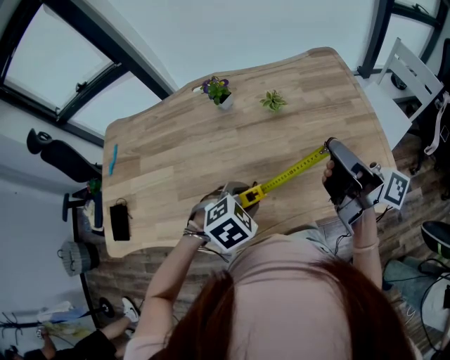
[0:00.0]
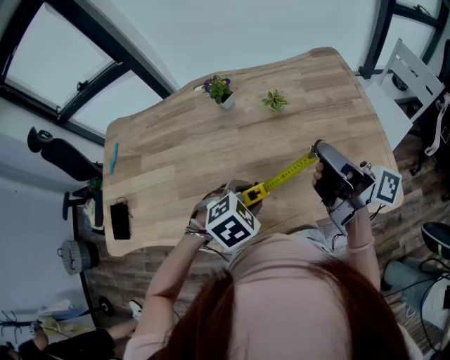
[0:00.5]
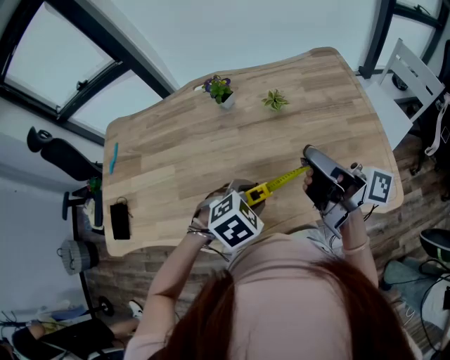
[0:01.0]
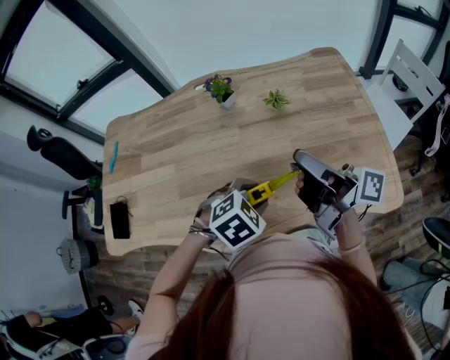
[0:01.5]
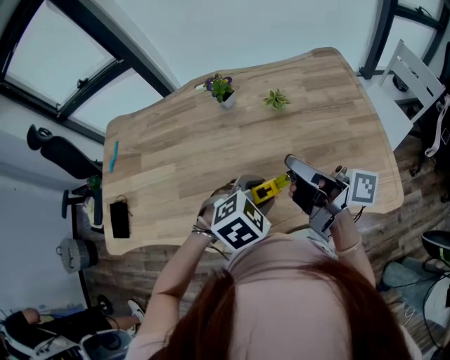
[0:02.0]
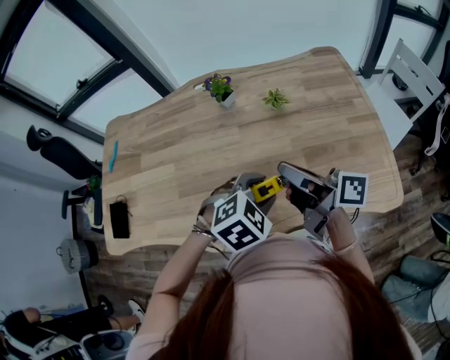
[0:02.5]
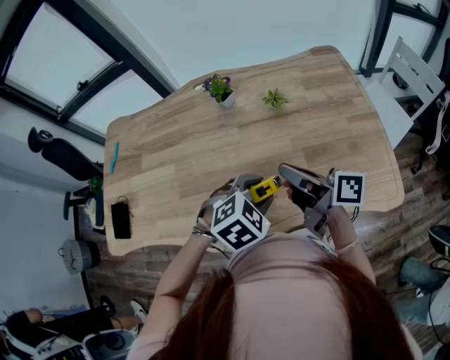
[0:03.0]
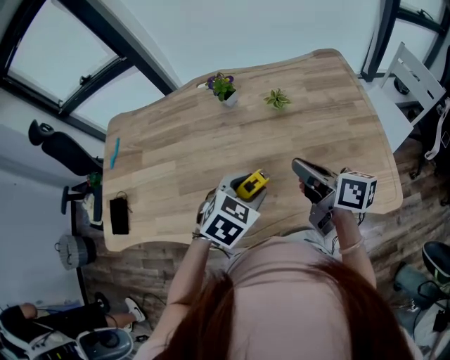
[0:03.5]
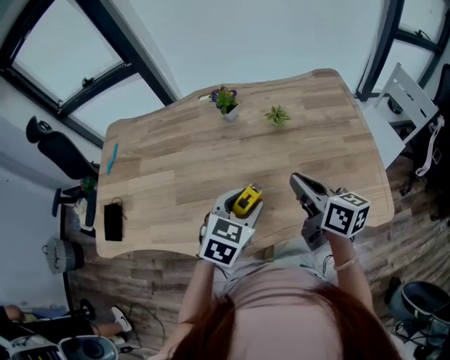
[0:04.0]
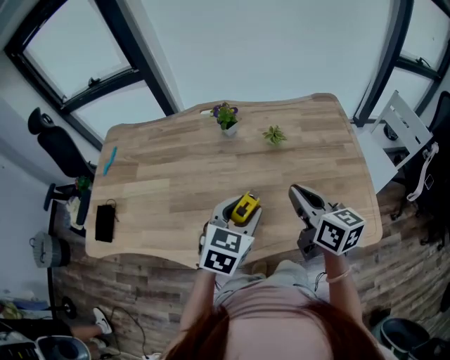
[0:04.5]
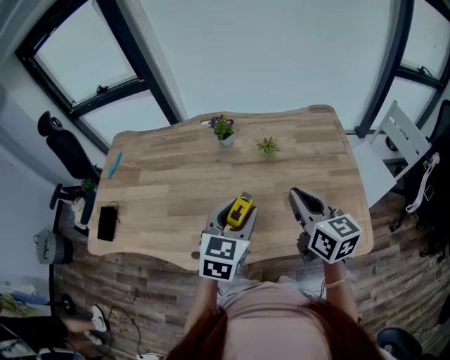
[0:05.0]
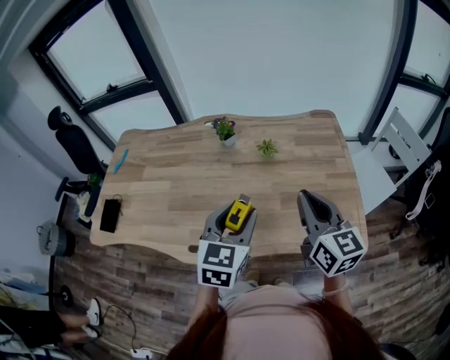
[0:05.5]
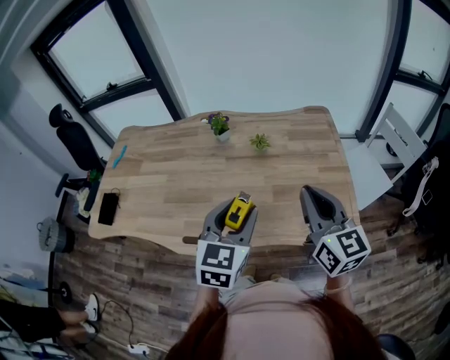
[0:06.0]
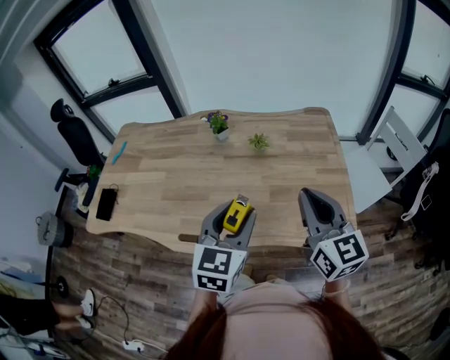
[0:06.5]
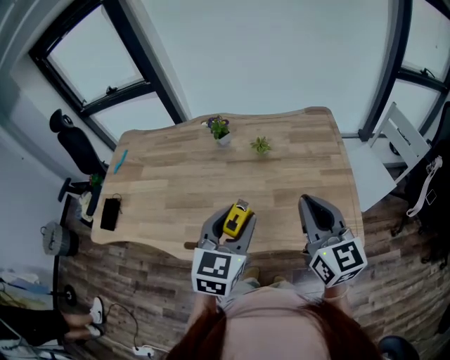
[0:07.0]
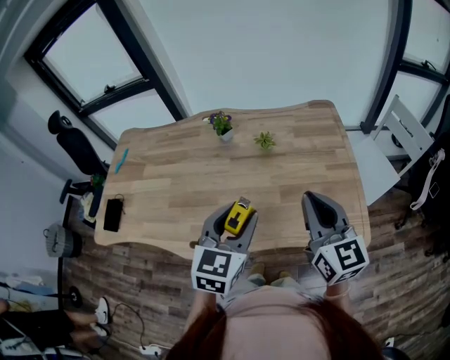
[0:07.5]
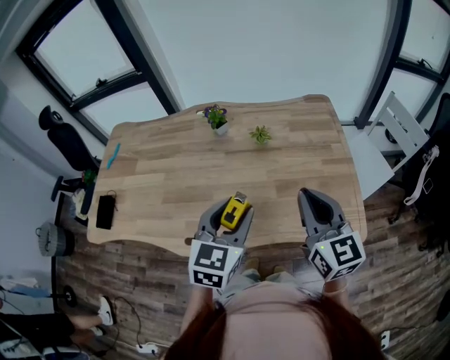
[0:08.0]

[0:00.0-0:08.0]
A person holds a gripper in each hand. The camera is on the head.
0:00.0 to 0:02.0: The right gripper goes about 10 cm to the left.
0:02.0 to 0:04.0: The left gripper changes its angle by roughly 30 degrees; the right gripper heads downward, covering approximately 5 cm, and turns by roughly 40 degrees.
0:04.0 to 0:06.0: The grippers both shift upward, to the right and backward by about 20 cm. The right gripper turns by approximately 30 degrees; the left gripper rotates some 30 degrees.
0:06.0 to 0:08.0: The left gripper shifts by roughly 5 cm.

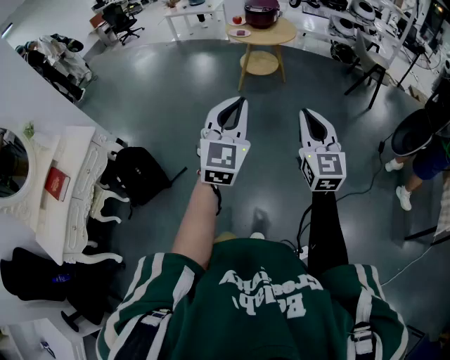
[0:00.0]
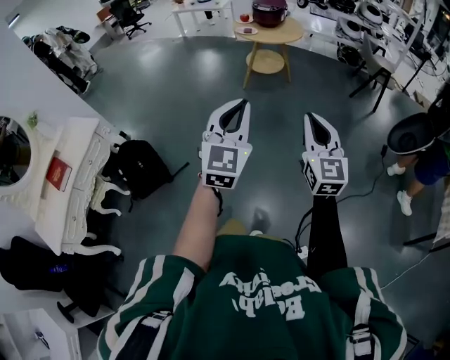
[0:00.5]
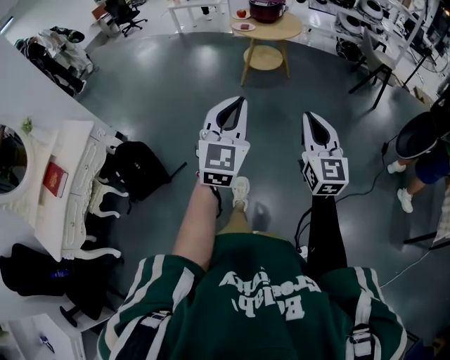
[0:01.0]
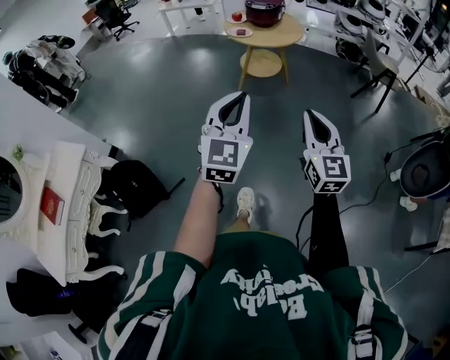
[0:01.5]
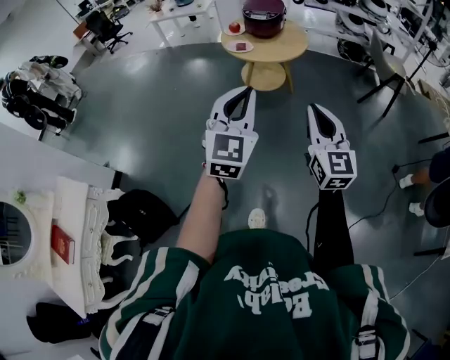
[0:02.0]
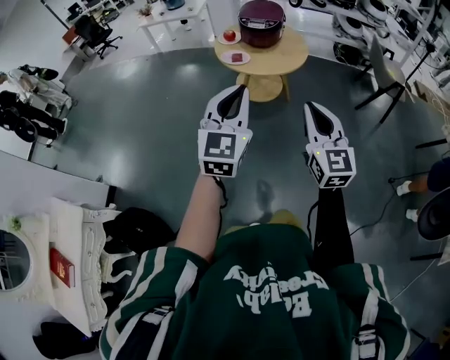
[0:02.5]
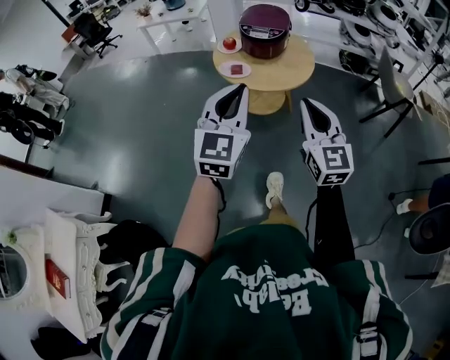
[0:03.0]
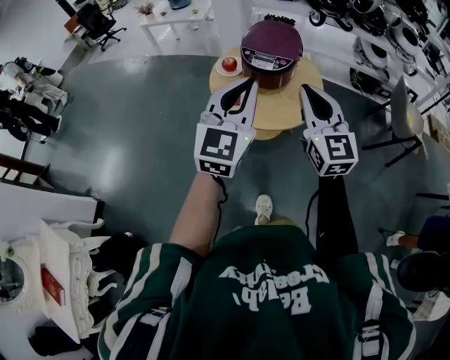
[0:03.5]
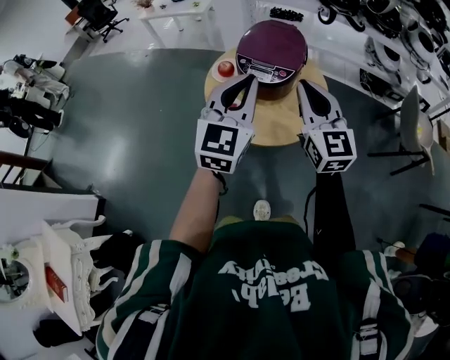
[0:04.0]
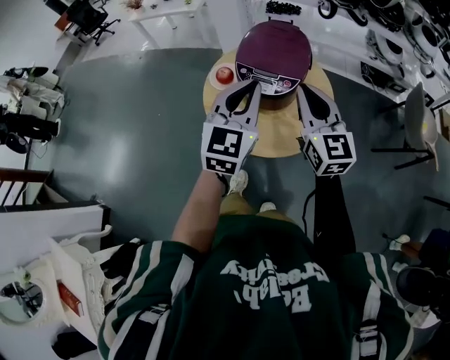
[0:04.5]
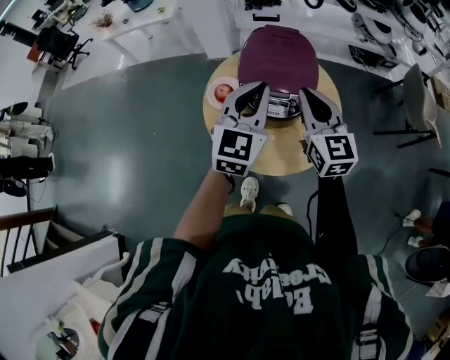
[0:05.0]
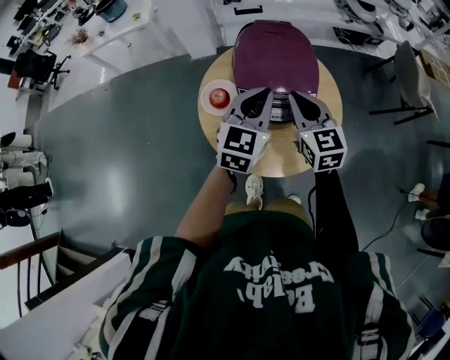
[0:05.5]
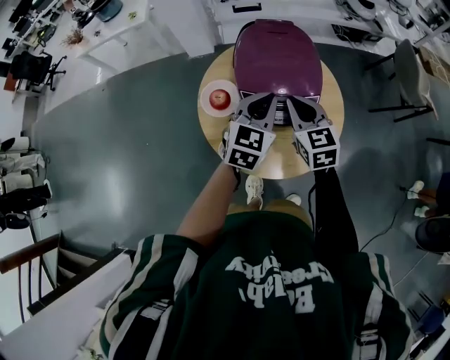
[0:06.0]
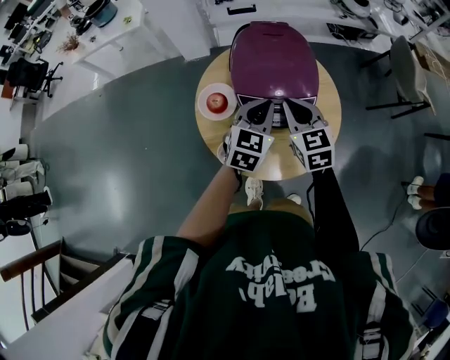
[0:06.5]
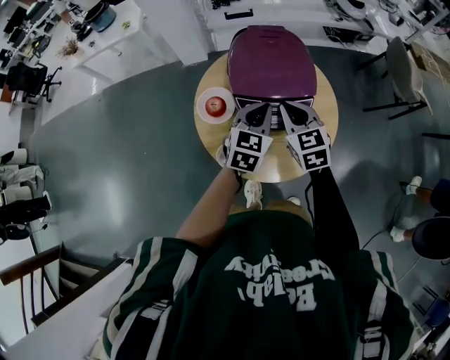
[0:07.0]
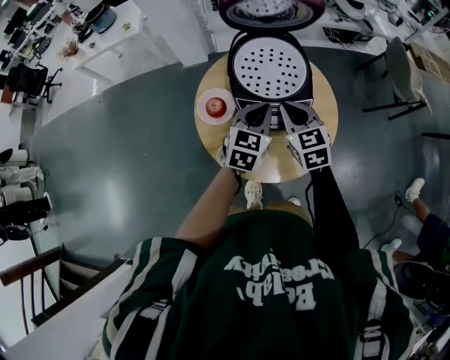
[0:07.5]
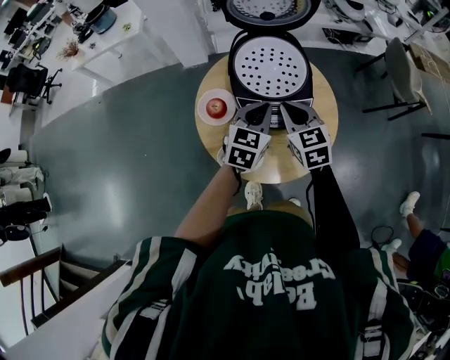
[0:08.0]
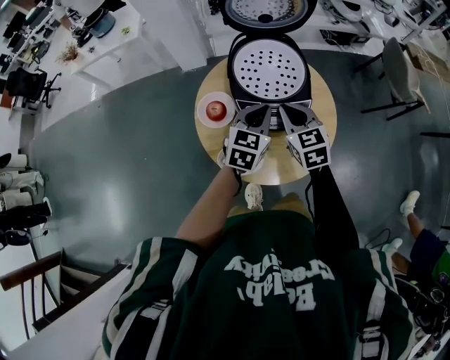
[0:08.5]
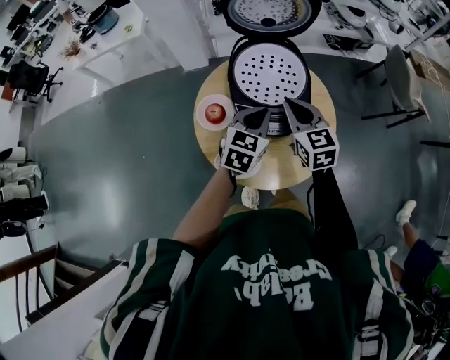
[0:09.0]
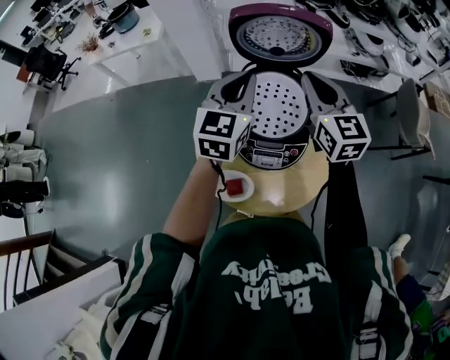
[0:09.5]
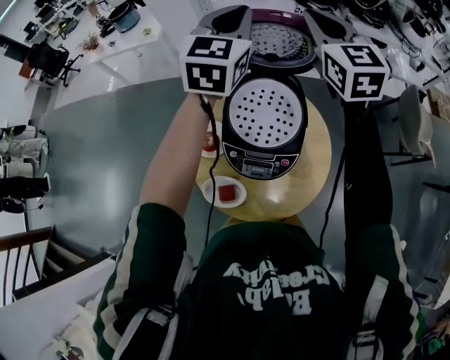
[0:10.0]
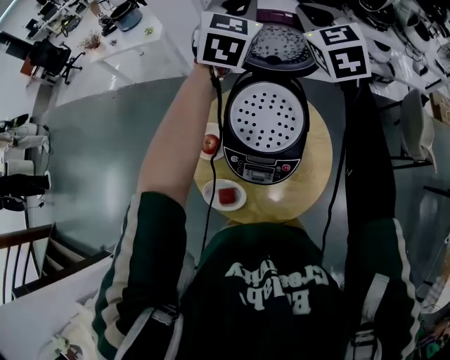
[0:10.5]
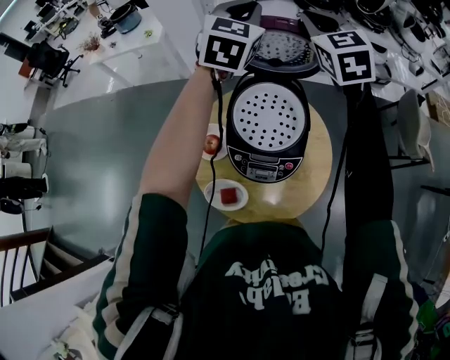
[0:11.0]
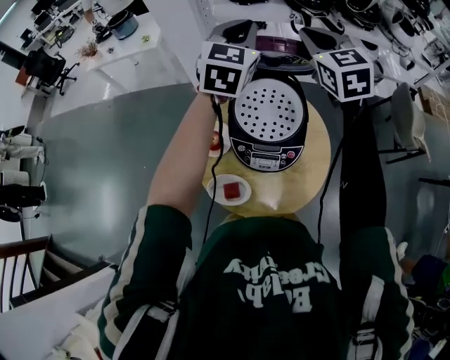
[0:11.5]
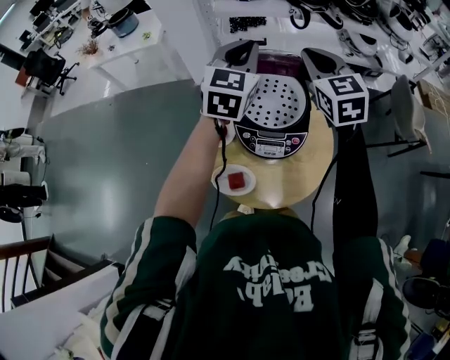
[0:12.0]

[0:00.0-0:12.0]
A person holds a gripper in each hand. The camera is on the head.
0:00.0 to 0:02.0: The two grippers go some 40 cm forward.
0:02.0 to 0:04.0: Both grippers are carried forward, some 70 cm.
0:04.0 to 0:06.0: The left gripper travels forward and downward by about 30 cm, and changes its angle by about 30 degrees, while the right gripper goes some 30 cm forward, downward and to the left, and swivels approximately 30 degrees.
0:06.0 to 0:08.0: There are only small adjustments of the grippers.
0:08.0 to 0:10.0: The two grippers go roughly 40 cm upward and forward. The left gripper swivels roughly 30 degrees; the right gripper swivels some 30 degrees.
0:10.0 to 0:12.0: Both grippers travel together backward and downward, some 10 cm.

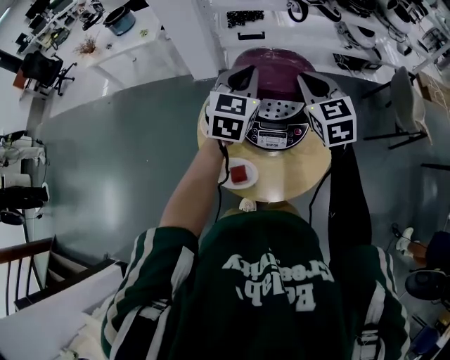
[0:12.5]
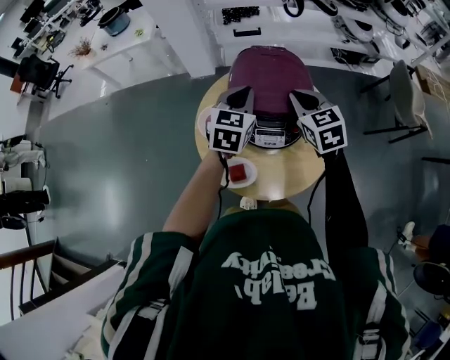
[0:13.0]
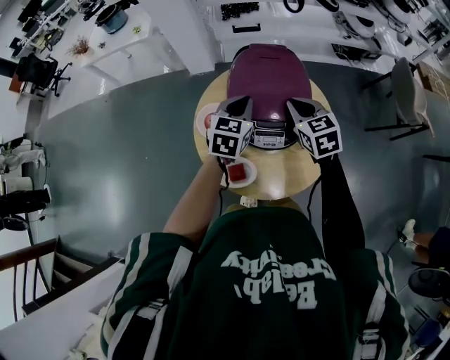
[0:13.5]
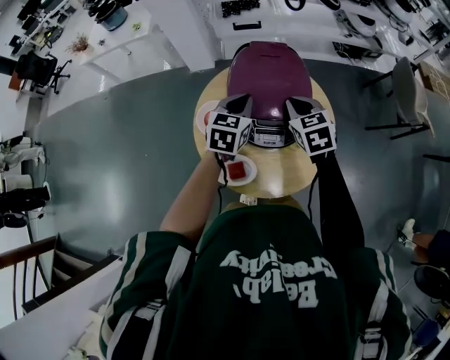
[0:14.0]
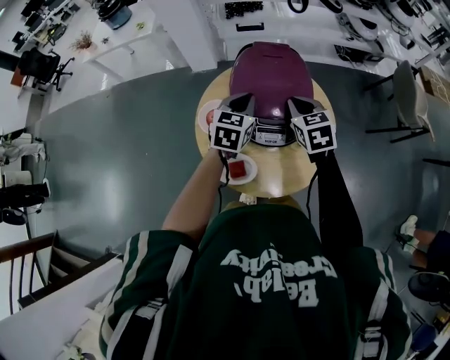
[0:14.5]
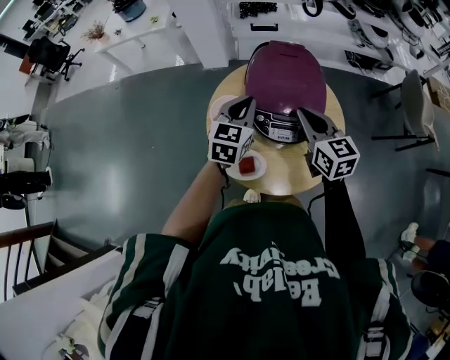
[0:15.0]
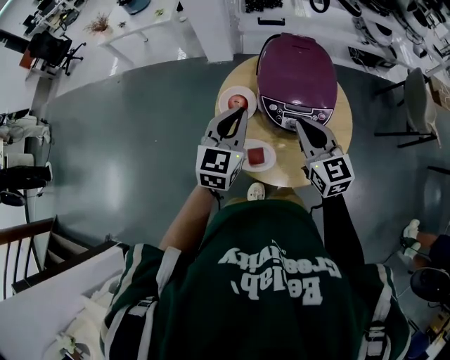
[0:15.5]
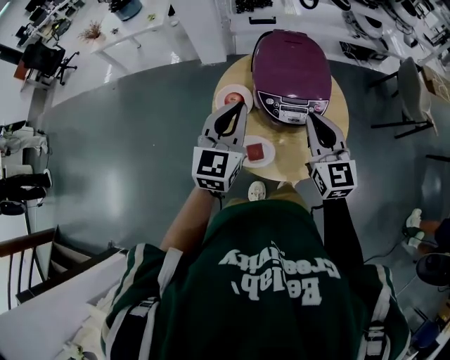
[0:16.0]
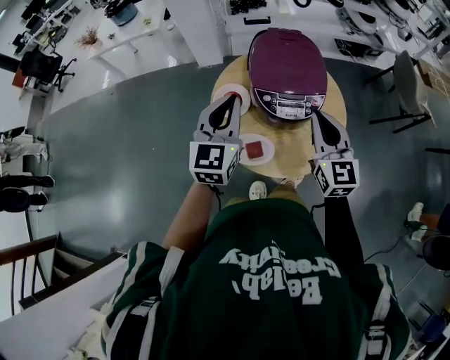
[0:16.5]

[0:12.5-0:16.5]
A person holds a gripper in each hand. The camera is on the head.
0:12.5 to 0:14.5: Both grippers move downward, some 15 cm.
0:14.5 to 0:16.5: The right gripper travels backward and upward by about 20 cm, and points its fingers some 30 degrees further upward. The left gripper goes some 20 cm backward, to the left and upward, and turns by roughly 20 degrees.

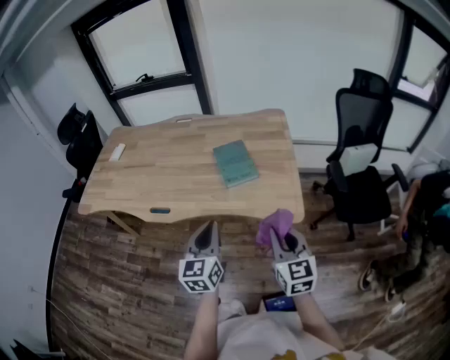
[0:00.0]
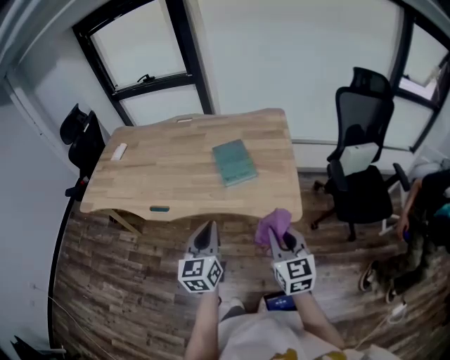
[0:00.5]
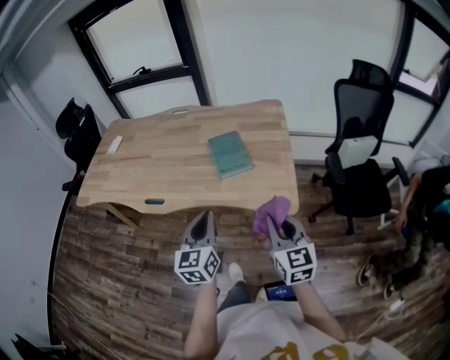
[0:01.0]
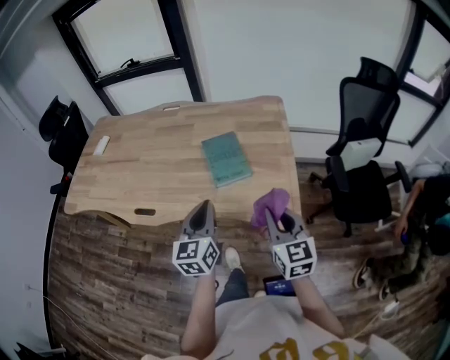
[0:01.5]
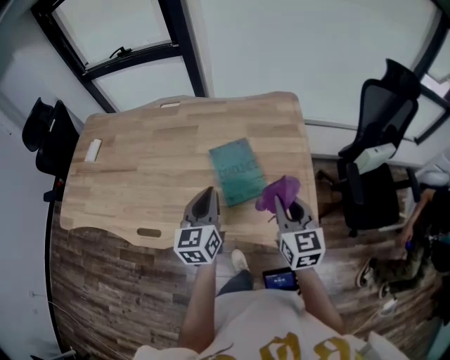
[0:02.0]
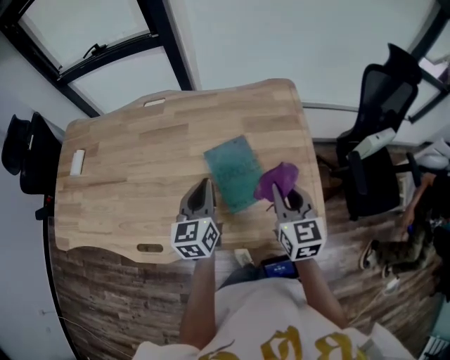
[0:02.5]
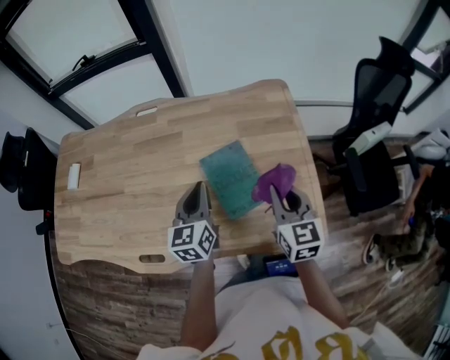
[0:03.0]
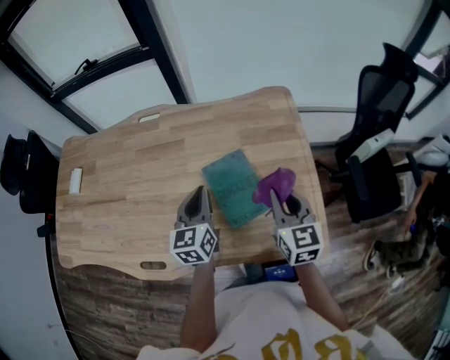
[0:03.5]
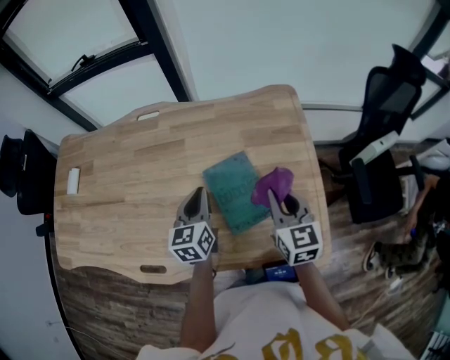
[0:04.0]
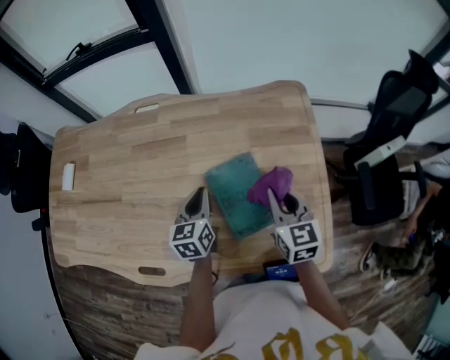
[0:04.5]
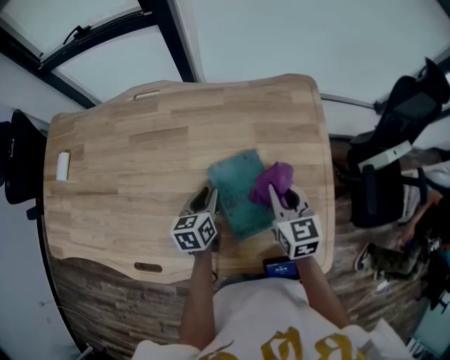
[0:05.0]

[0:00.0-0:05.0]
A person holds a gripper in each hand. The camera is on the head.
0:00.0 to 0:02.5: Both grippers move forward, about 35 cm.
0:02.5 to 0:05.0: The left gripper shifts about 15 cm downward and forward, swivels roughly 30 degrees, and opens. Meanwhile the right gripper shifts about 15 cm forward and downward.
